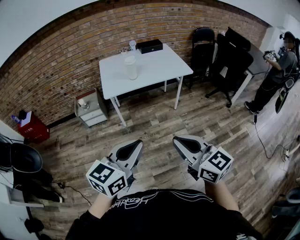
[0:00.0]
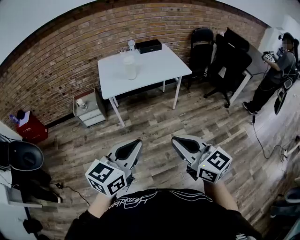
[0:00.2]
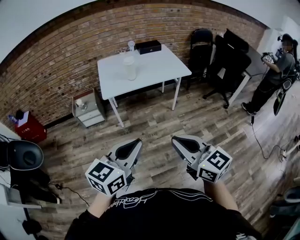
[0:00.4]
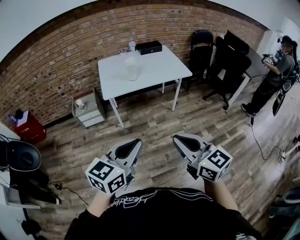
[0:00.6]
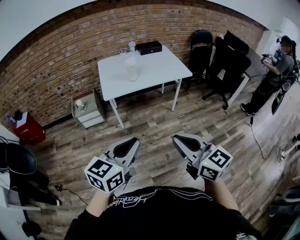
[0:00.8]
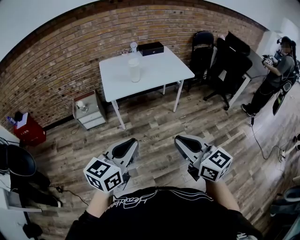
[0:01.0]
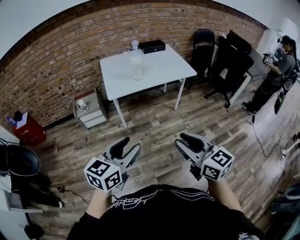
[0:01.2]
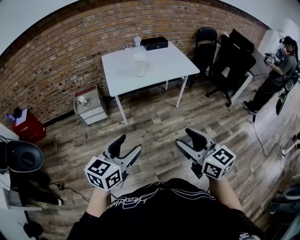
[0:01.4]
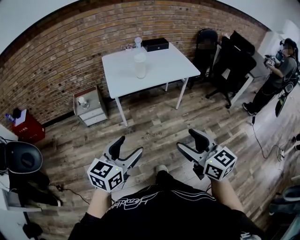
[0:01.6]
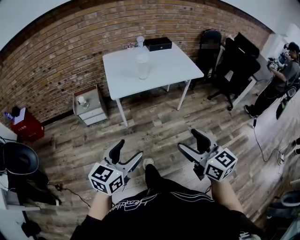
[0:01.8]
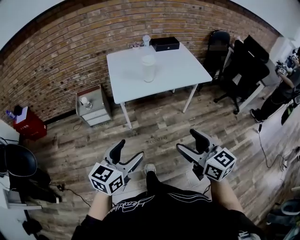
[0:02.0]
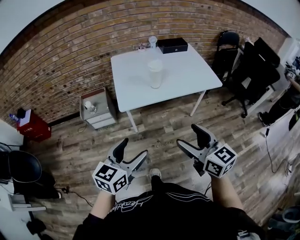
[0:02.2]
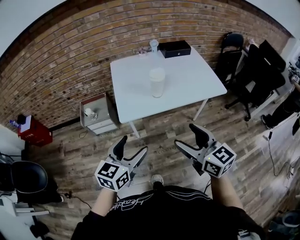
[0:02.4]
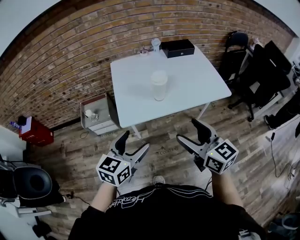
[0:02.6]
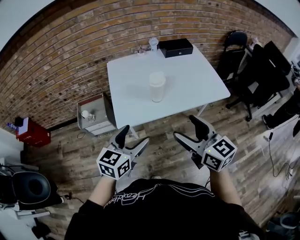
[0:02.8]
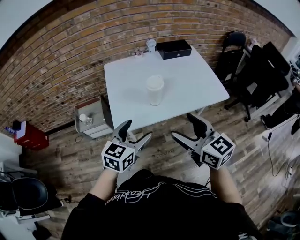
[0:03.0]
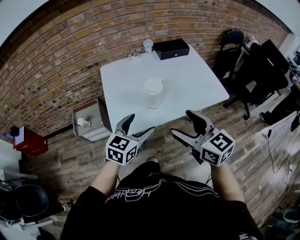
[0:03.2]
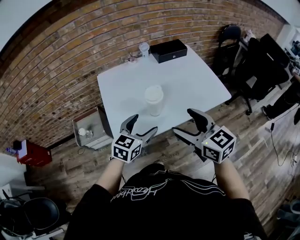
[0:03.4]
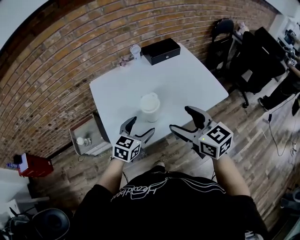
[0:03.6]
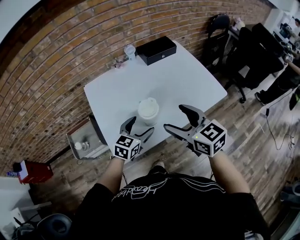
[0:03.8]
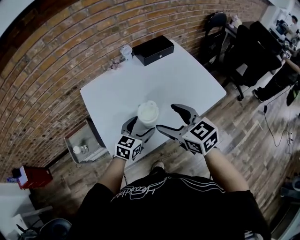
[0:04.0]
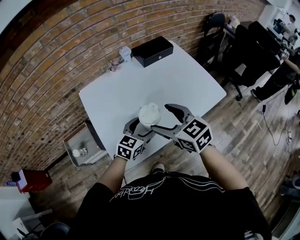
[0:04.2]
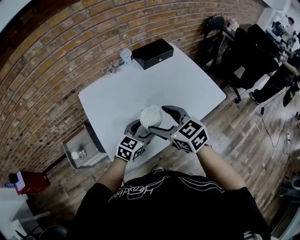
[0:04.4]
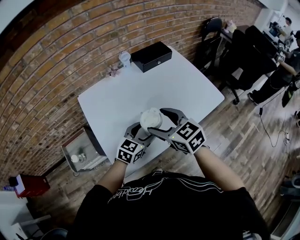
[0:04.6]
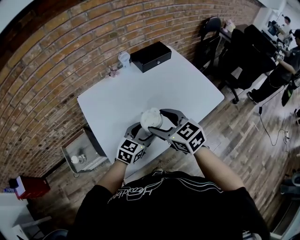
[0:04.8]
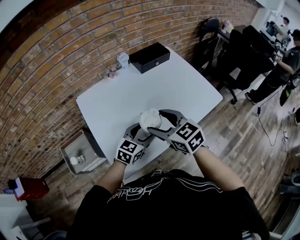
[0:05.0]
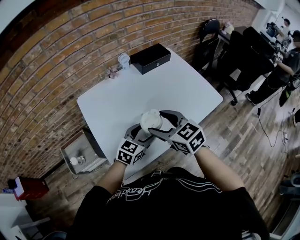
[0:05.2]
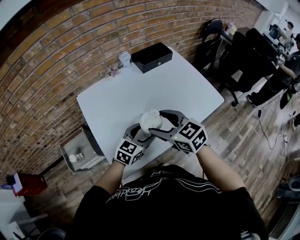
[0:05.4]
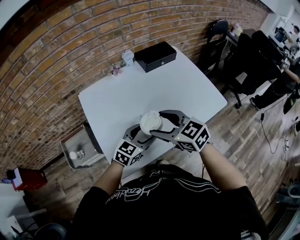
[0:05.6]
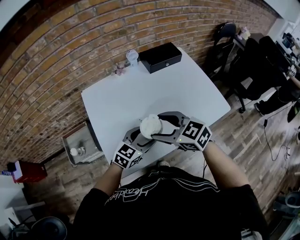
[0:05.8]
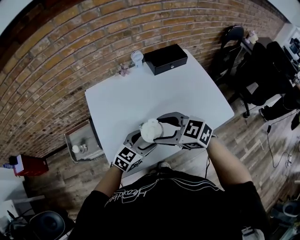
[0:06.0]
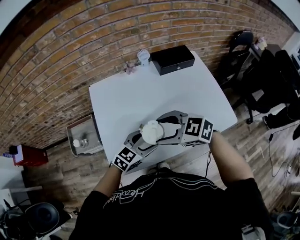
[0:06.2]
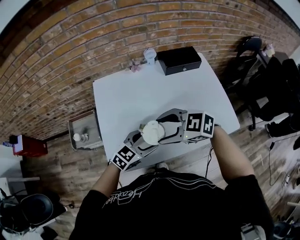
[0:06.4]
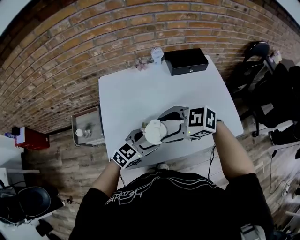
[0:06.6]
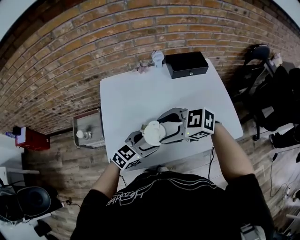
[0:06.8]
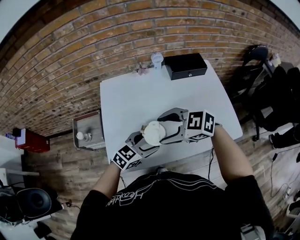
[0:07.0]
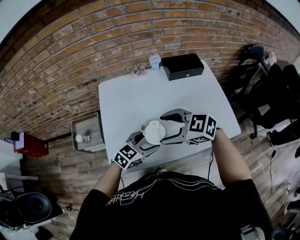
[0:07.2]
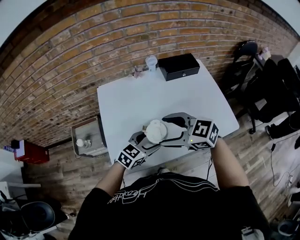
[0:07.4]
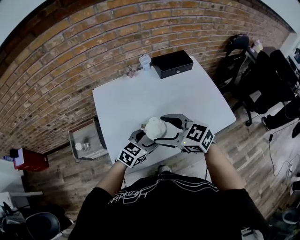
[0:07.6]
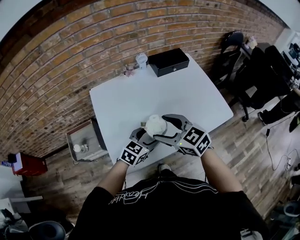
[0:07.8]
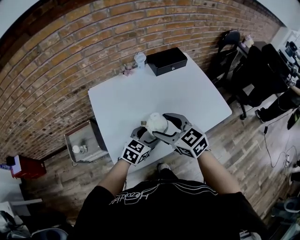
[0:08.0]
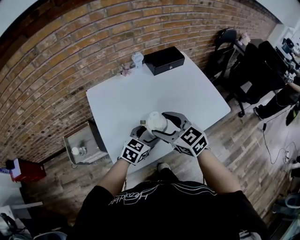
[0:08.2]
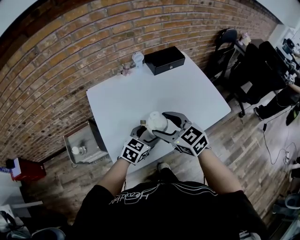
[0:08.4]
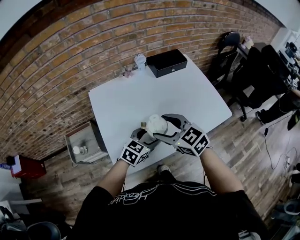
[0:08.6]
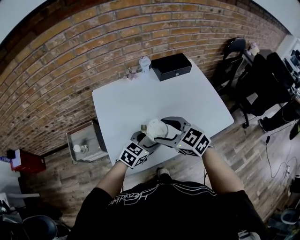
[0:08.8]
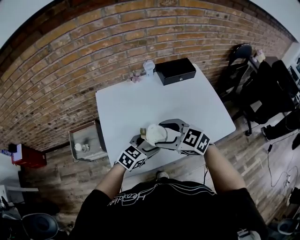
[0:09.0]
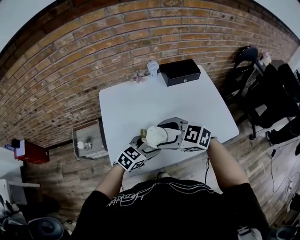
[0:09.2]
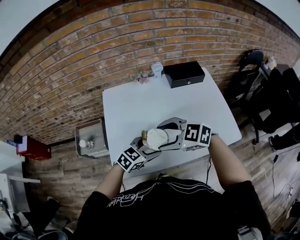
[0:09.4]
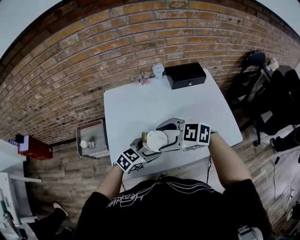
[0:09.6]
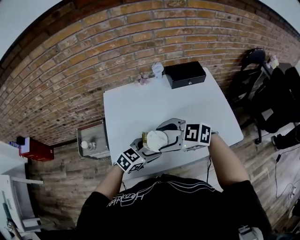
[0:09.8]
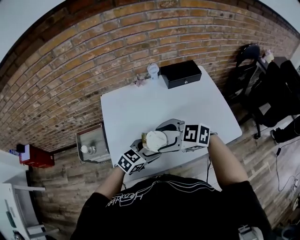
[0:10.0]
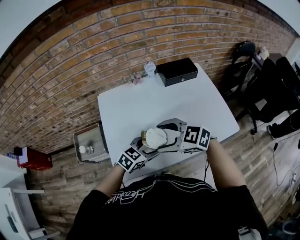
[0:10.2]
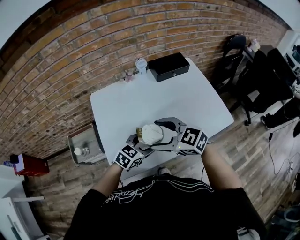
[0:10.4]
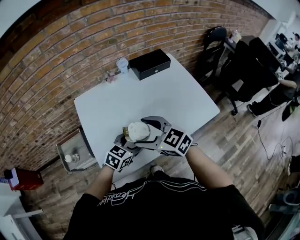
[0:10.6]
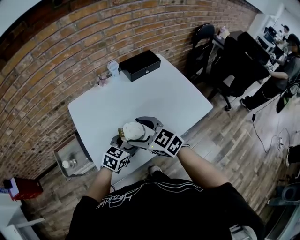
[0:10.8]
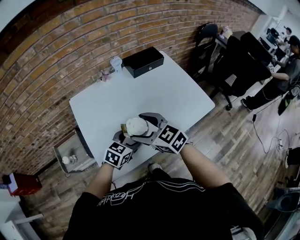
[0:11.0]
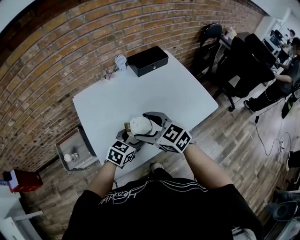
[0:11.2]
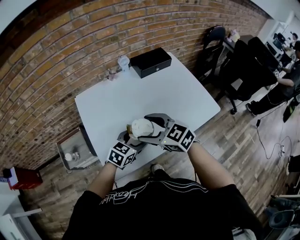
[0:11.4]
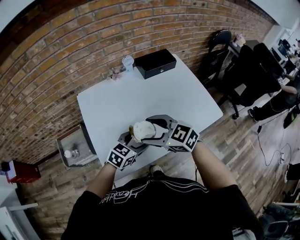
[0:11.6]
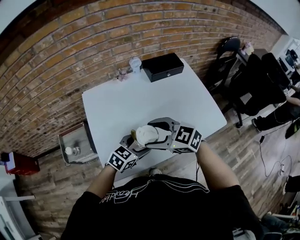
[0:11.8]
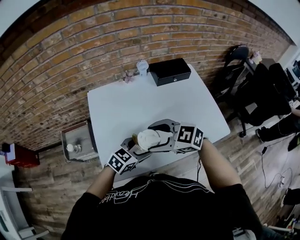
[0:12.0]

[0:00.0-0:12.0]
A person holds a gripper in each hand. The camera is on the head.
0:00.0 to 0:01.6: The right gripper travels to the left by roughly 5 cm, and opens its fingers. The left gripper shifts roughly 15 cm to the left, downward and forward, and opens its fingers.
0:01.6 to 0:03.0: The two grippers go approximately 40 cm forward.
0:03.0 to 0:04.4: The right gripper shifts approximately 20 cm forward. The left gripper is displaced forward and downward by about 25 cm, and swivels roughly 20 degrees.
0:04.4 to 0:06.0: The right gripper rotates approximately 30 degrees.
0:10.4 to 0:12.0: The grippers stay close to where they were, moving slightly.

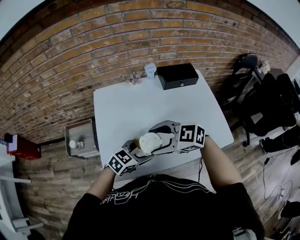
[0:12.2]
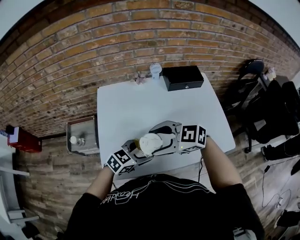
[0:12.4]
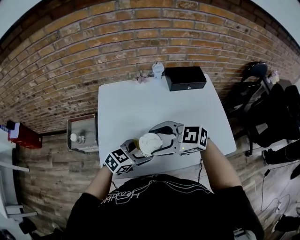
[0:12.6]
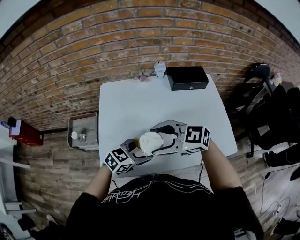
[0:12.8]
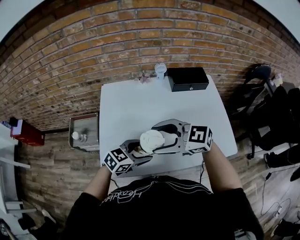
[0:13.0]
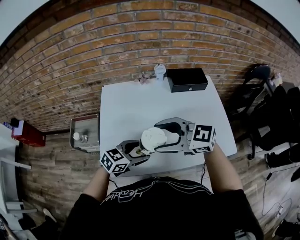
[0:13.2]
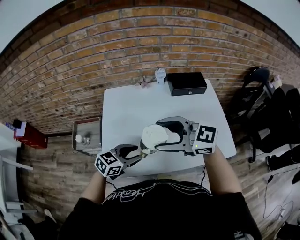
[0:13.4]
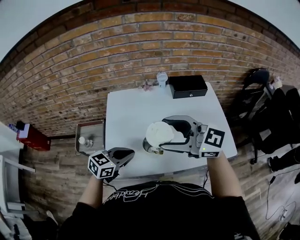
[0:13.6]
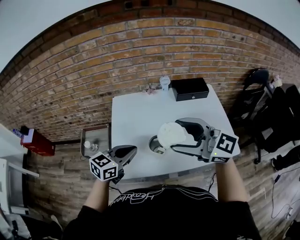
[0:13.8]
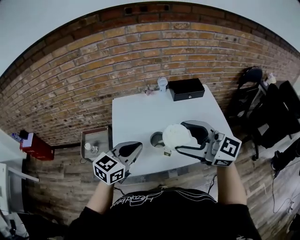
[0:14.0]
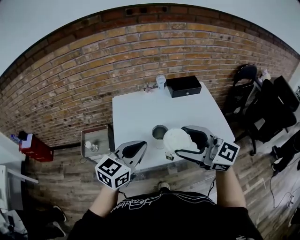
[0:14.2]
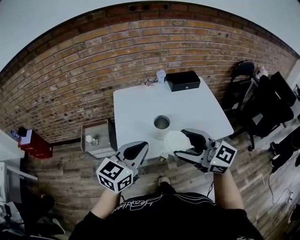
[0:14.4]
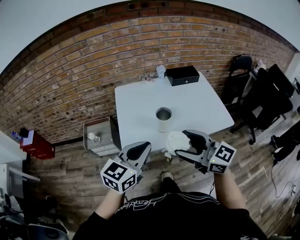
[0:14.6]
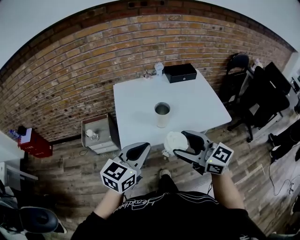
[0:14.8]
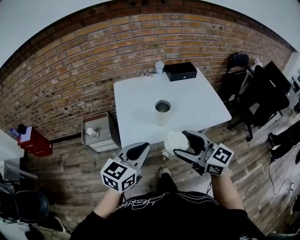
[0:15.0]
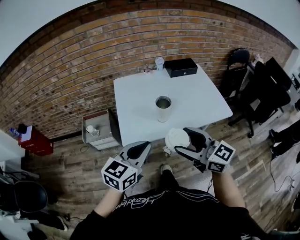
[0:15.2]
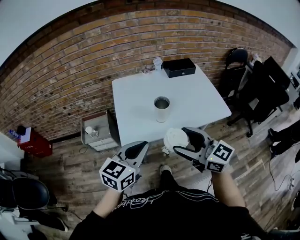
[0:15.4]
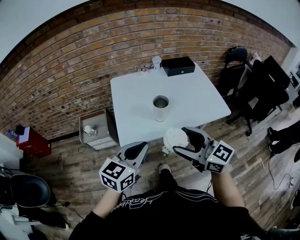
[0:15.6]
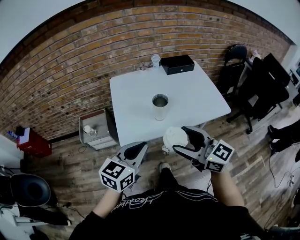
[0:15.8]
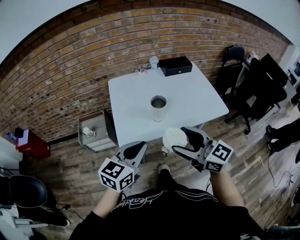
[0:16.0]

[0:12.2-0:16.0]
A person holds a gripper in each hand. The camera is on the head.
0:12.2 to 0:13.4: The left gripper shifts by roughly 5 cm, while the right gripper shifts roughly 10 cm upward, and changes its angle by roughly 20 degrees.
0:13.4 to 0:14.8: The right gripper travels upward and back again, some 10 cm each way, and changes its angle by some 30 degrees; the left gripper changes place by some 25 cm, changes its angle by about 20 degrees, and closes.
0:14.8 to 0:16.0: The grippers make only small movements.

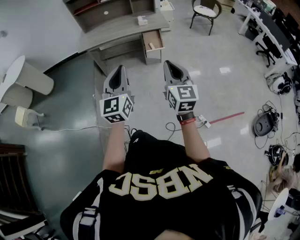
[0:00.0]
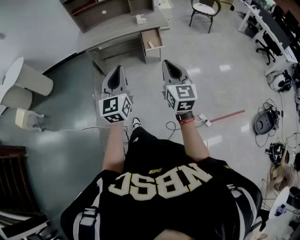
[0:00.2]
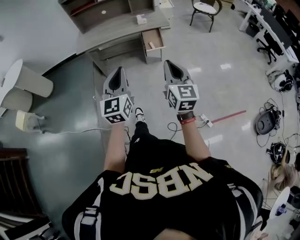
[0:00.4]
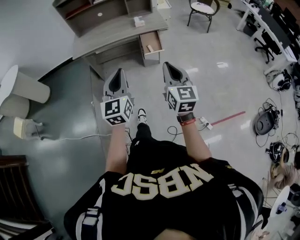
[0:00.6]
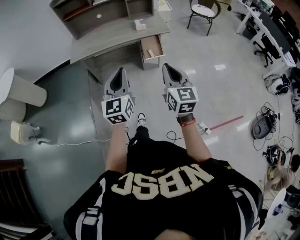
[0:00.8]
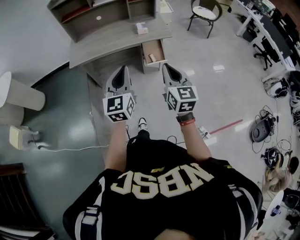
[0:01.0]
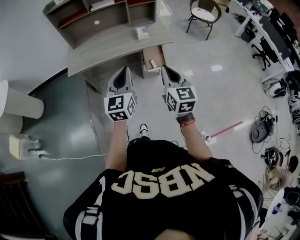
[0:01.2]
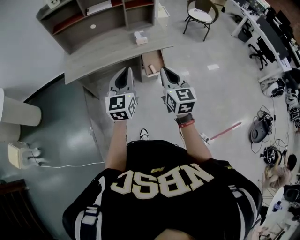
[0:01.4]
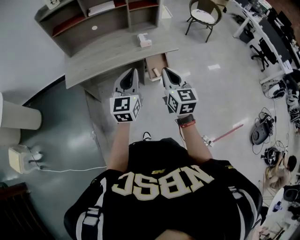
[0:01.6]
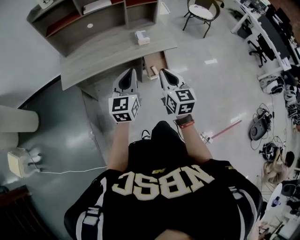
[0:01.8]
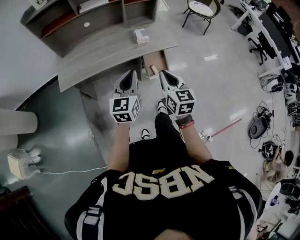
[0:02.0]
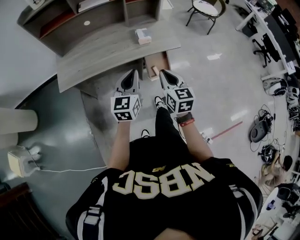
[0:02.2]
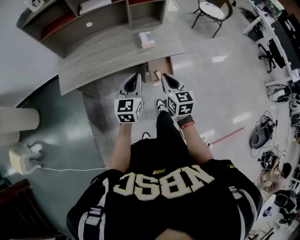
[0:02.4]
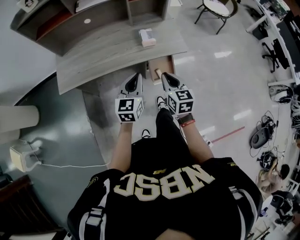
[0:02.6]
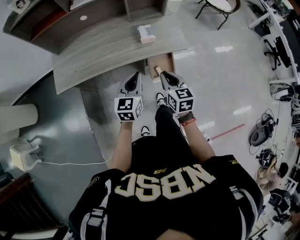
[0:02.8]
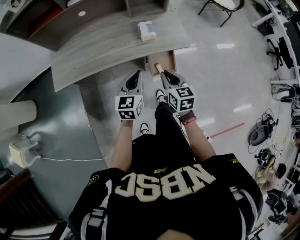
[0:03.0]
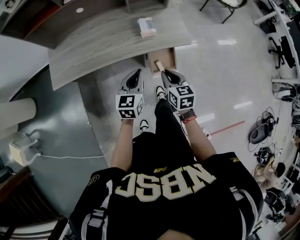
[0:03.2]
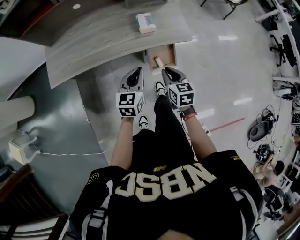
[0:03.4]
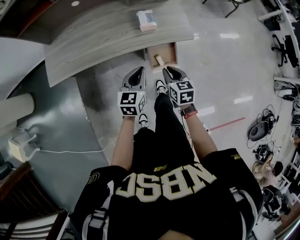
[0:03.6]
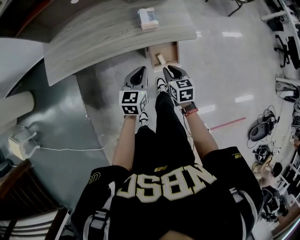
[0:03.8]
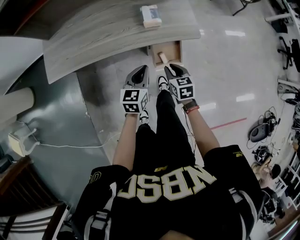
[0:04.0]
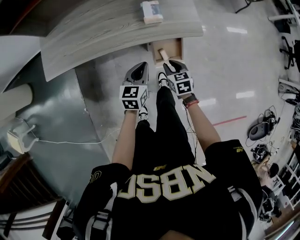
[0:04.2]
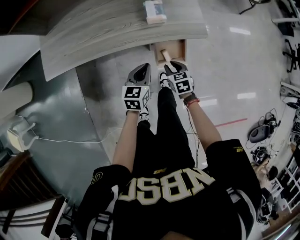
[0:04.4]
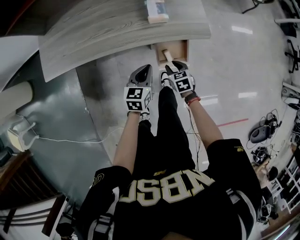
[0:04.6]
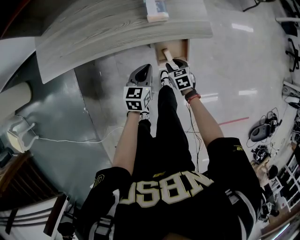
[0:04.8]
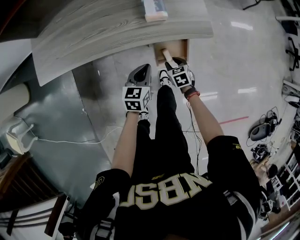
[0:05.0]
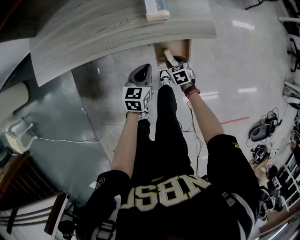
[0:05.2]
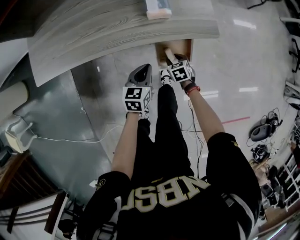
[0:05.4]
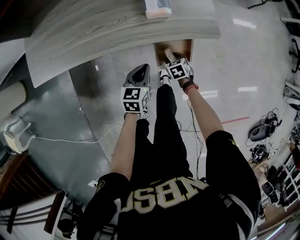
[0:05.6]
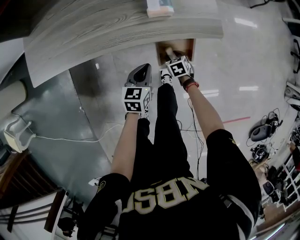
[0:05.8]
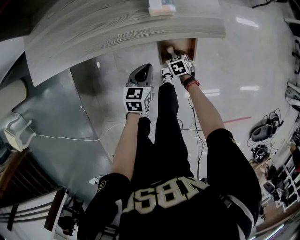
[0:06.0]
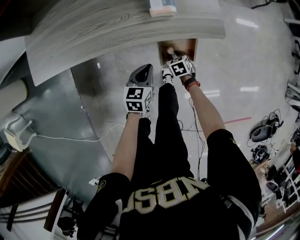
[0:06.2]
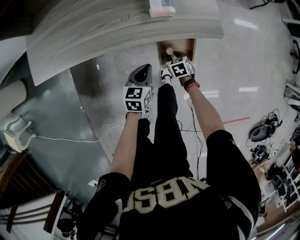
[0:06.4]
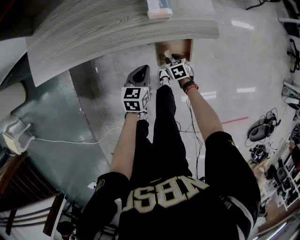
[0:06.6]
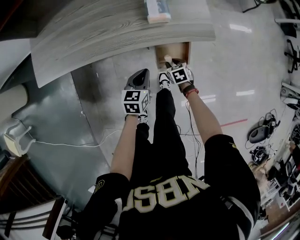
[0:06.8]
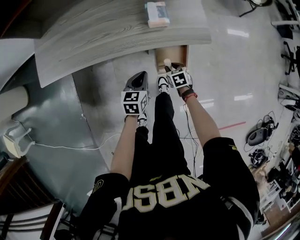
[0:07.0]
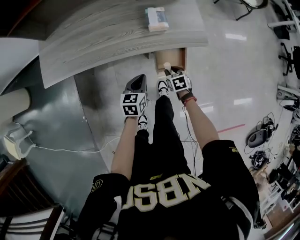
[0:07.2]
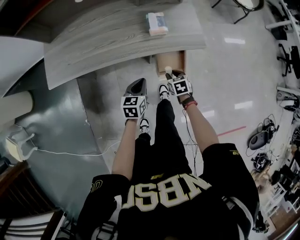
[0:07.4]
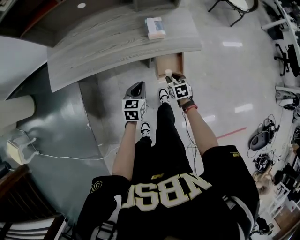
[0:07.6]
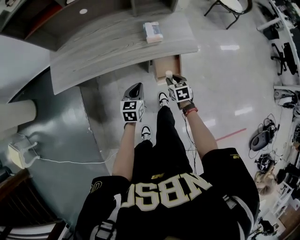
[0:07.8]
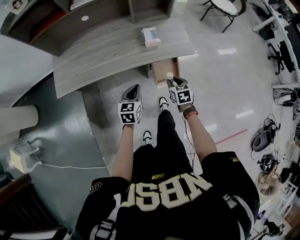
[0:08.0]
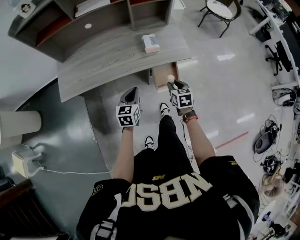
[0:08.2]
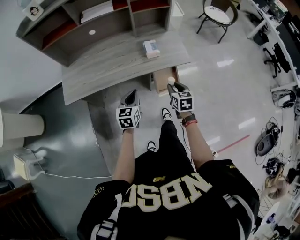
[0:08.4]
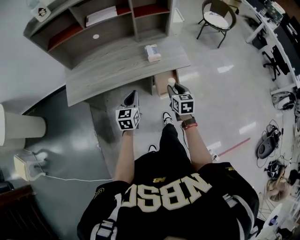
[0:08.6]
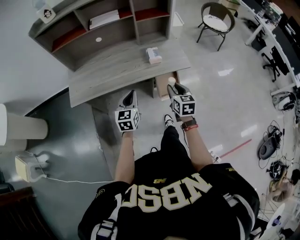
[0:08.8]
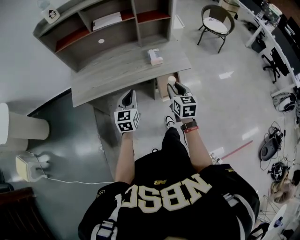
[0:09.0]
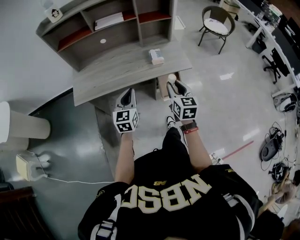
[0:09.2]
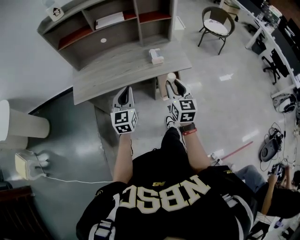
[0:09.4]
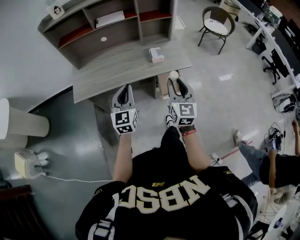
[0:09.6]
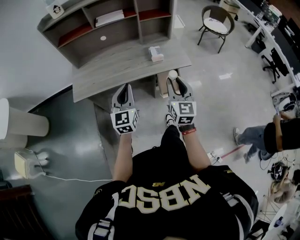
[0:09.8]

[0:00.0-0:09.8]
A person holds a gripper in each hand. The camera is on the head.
0:00.0 to 0:01.4: Both grippers move forward, approximately 40 cm.
0:01.4 to 0:02.8: Both grippers move forward and downward, some 30 cm. The right gripper changes its angle by roughly 20 degrees.
0:02.8 to 0:04.2: Both grippers travel together downward, approximately 15 cm. The right gripper swivels some 20 degrees.
0:04.2 to 0:05.6: The left gripper heads downward, covering roughly 15 cm. Meanwhile the right gripper shifts approximately 20 cm downward.
0:05.6 to 0:07.0: The right gripper goes roughly 5 cm upward.
0:07.0 to 0:08.4: The right gripper is displaced upward by about 25 cm, and swivels approximately 30 degrees. Meanwhile the left gripper travels upward and to the left by some 15 cm.
0:08.4 to 0:09.8: The two grippers go roughly 20 cm upward and backward. The left gripper rotates roughly 30 degrees. Meanwhile the right gripper angles its fingers upward, by about 30 degrees.
